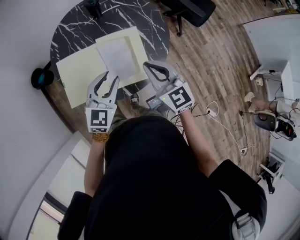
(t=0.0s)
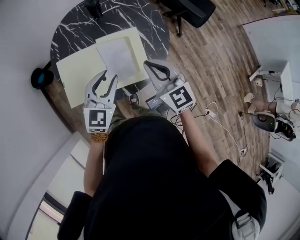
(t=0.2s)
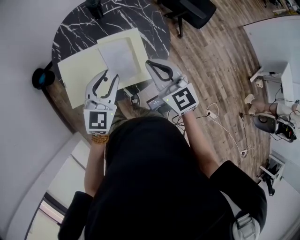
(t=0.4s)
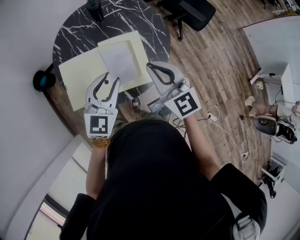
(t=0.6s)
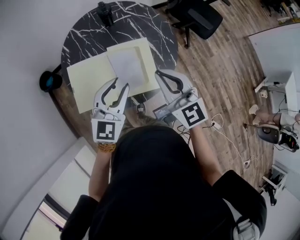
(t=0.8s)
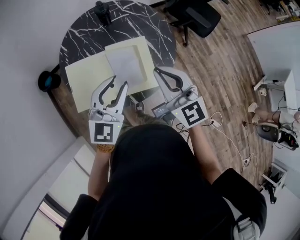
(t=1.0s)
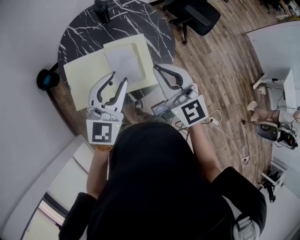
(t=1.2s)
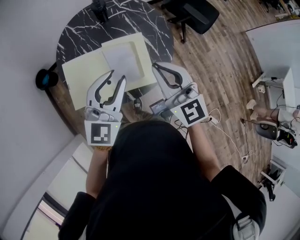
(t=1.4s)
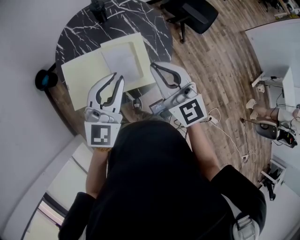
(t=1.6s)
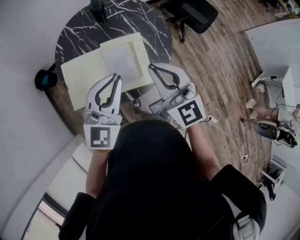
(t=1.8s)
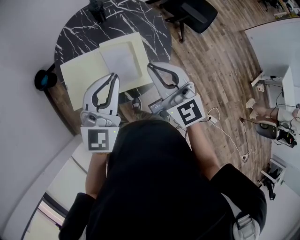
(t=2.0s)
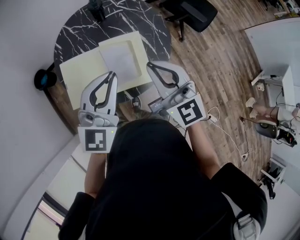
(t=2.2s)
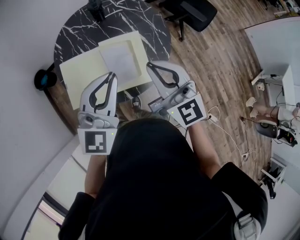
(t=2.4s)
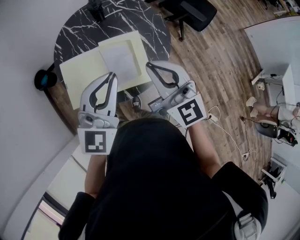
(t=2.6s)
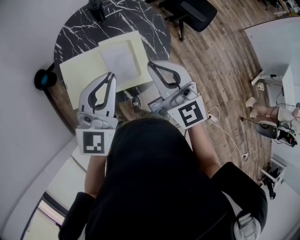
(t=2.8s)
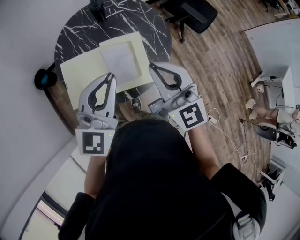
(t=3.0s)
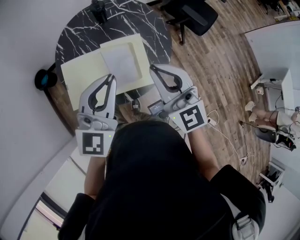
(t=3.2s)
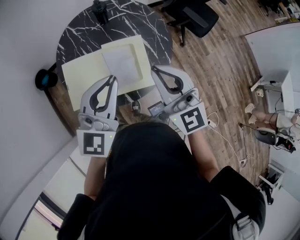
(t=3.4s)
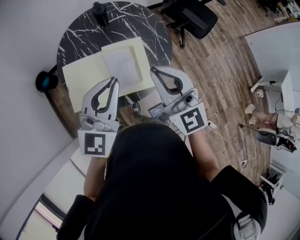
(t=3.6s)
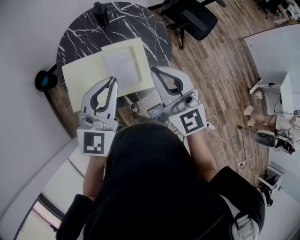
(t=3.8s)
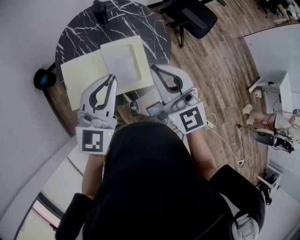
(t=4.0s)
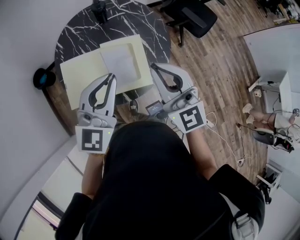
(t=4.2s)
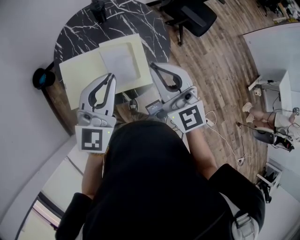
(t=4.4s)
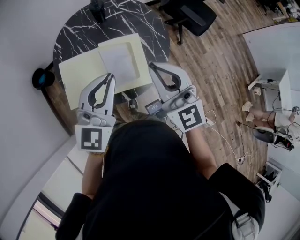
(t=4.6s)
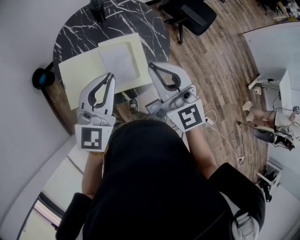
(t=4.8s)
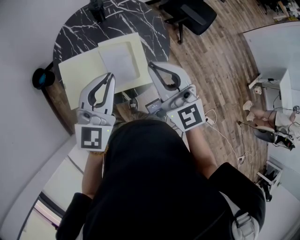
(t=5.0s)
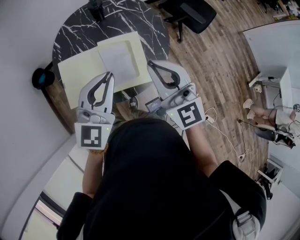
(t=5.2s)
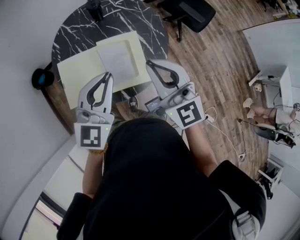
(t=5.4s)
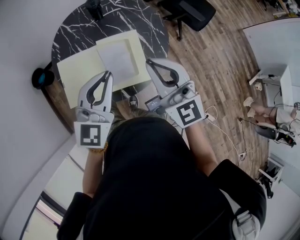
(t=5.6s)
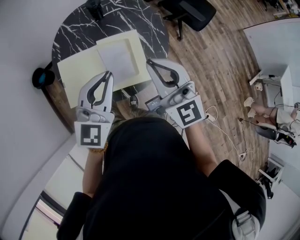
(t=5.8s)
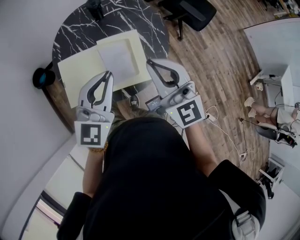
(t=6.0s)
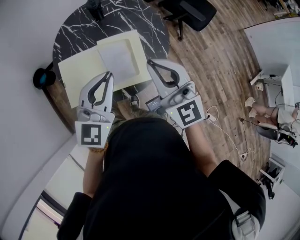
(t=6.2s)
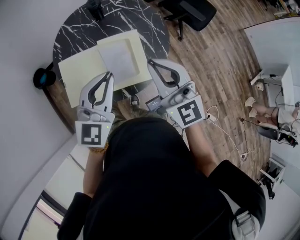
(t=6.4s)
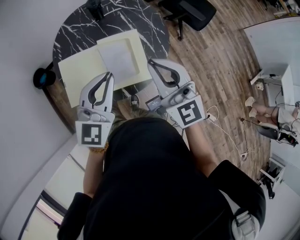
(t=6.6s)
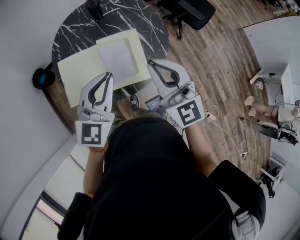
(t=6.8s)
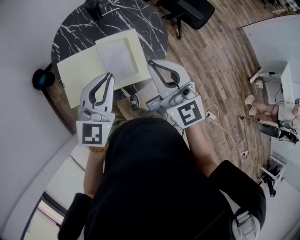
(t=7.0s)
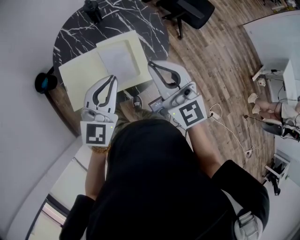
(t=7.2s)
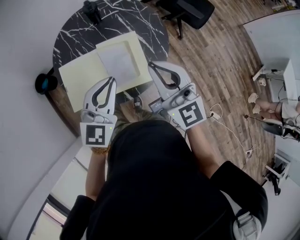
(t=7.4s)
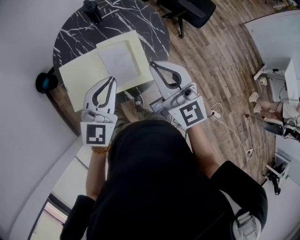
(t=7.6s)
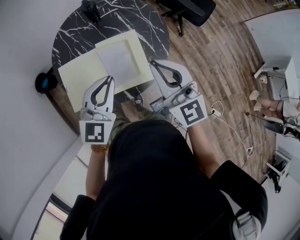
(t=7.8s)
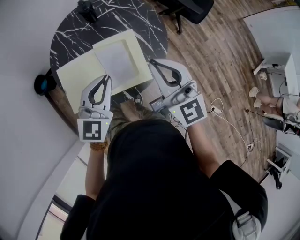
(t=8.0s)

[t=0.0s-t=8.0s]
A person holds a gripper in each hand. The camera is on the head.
t=0.0s to t=1.6s: The grippers both shift upward by roughly 10 cm.
t=1.6s to t=3.2s: The left gripper travels upward by roughly 5 cm.
t=3.2s to t=6.4s: The grippers make only small movements.
t=6.4s to t=8.0s: The left gripper is displaced downward by about 5 cm.

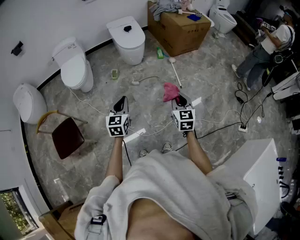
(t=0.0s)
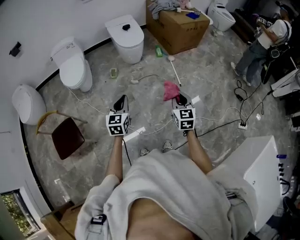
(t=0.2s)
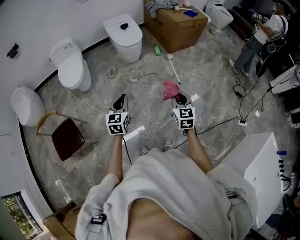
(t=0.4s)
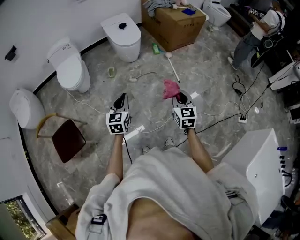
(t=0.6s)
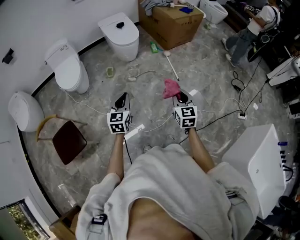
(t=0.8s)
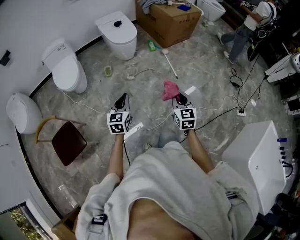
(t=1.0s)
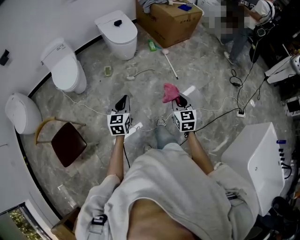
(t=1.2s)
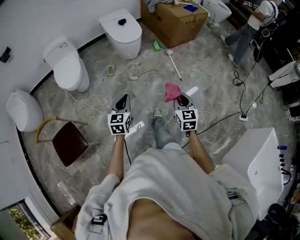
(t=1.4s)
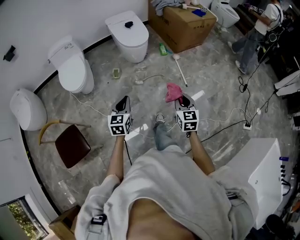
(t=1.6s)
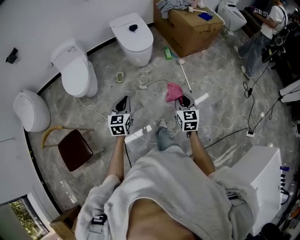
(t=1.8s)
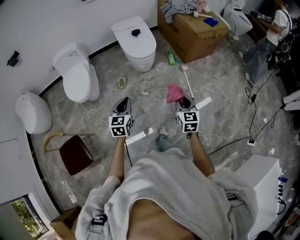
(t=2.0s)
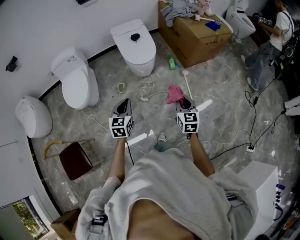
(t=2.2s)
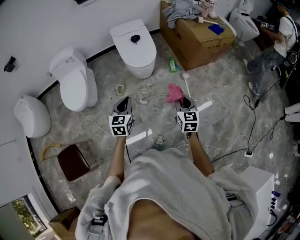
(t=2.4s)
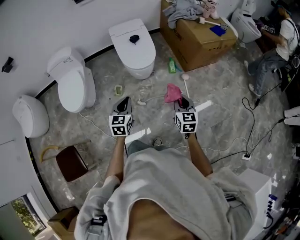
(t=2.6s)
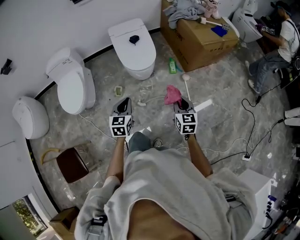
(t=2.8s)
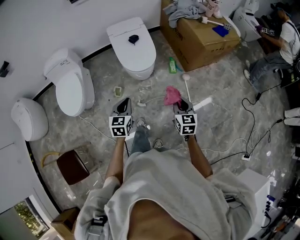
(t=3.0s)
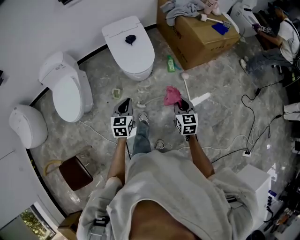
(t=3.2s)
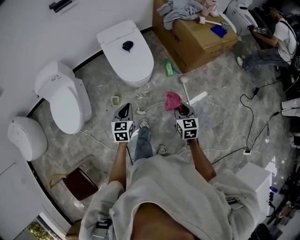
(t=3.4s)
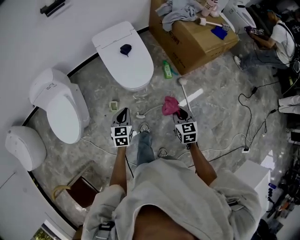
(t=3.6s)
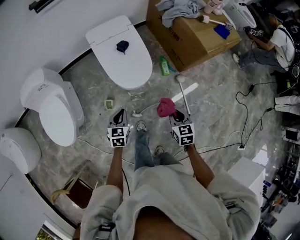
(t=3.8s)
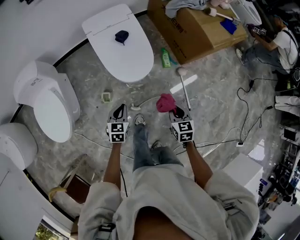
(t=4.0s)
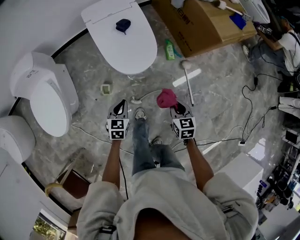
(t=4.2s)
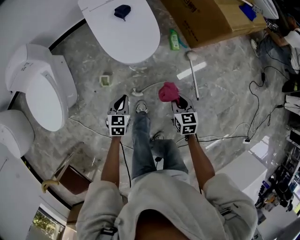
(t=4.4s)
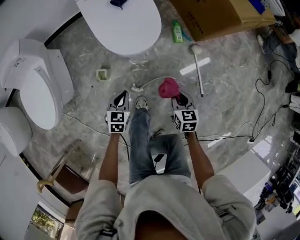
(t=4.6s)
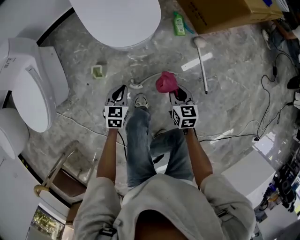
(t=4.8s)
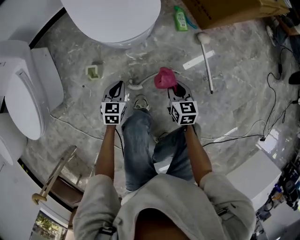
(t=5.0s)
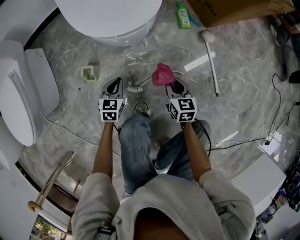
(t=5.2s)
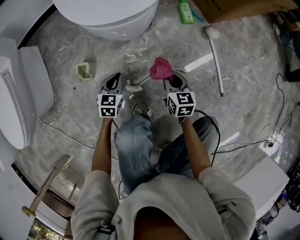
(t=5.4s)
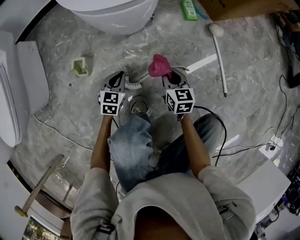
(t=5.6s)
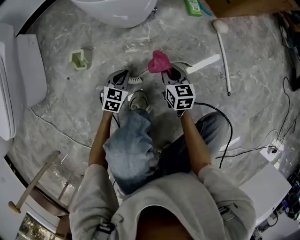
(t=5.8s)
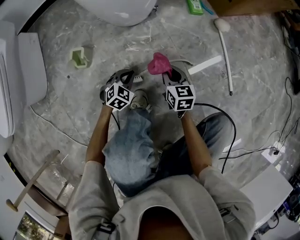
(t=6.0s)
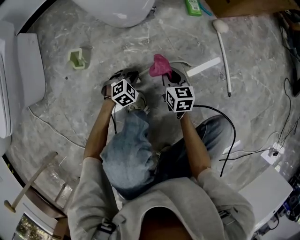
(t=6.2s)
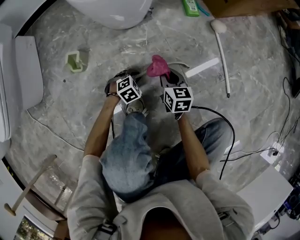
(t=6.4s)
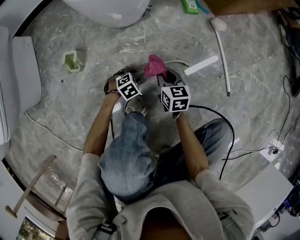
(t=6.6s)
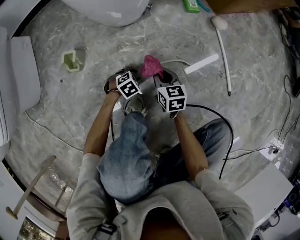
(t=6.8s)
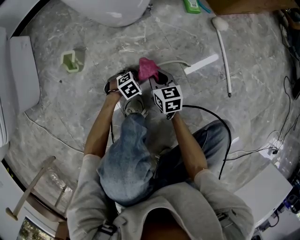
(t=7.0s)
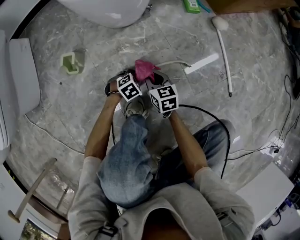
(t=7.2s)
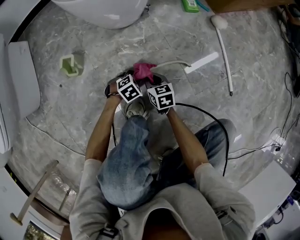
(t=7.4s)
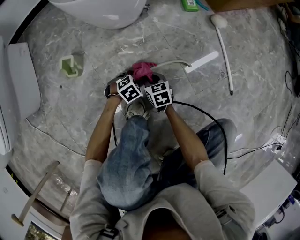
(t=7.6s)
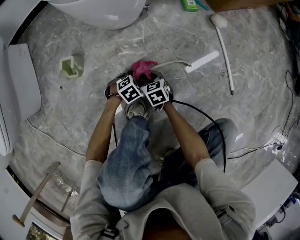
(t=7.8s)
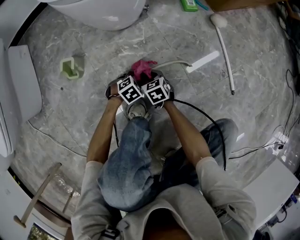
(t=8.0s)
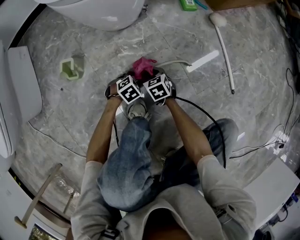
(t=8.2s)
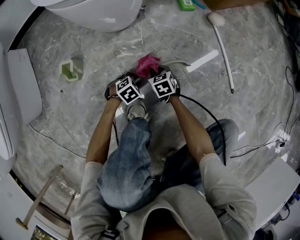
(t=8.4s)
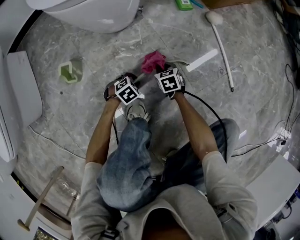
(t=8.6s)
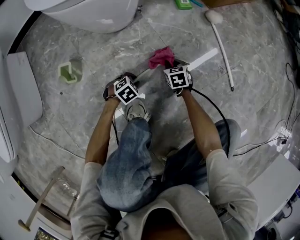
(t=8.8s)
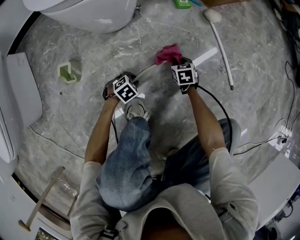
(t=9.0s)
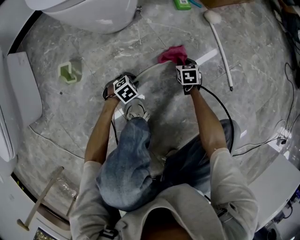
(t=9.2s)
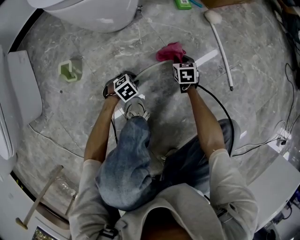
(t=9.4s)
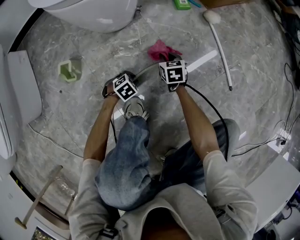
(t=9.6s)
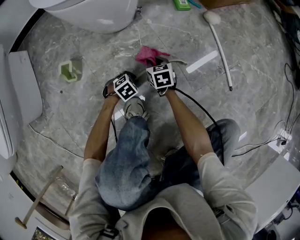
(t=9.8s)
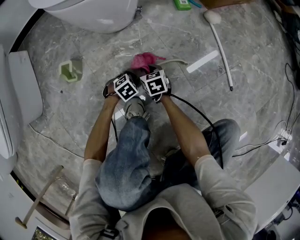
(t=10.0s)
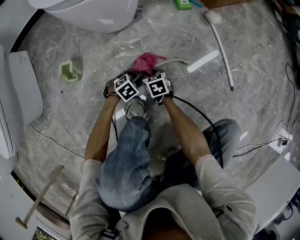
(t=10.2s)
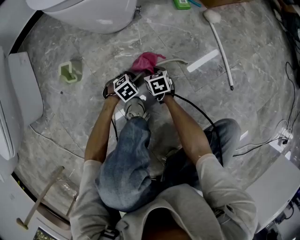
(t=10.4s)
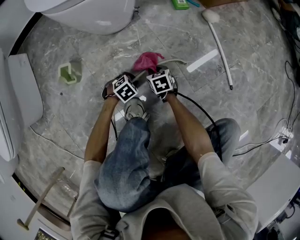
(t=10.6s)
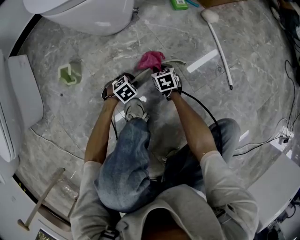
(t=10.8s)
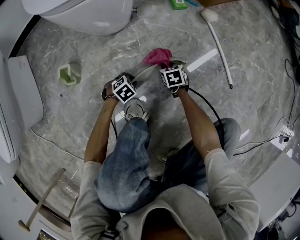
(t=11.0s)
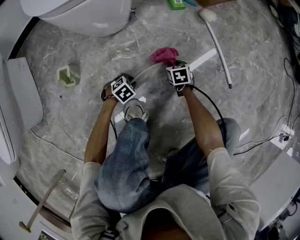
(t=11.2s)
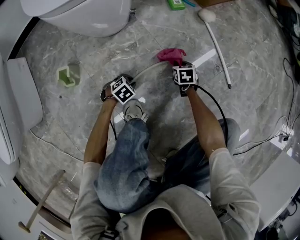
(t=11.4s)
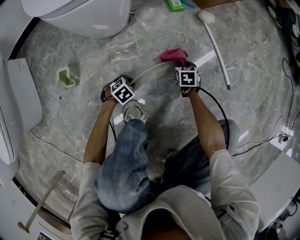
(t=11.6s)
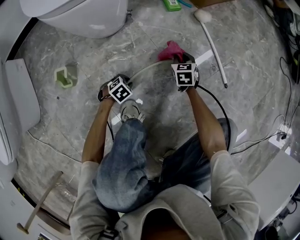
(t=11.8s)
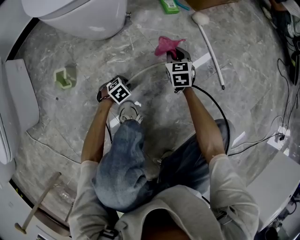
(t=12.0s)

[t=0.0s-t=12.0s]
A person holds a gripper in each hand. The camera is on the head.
t=0.0s to t=1.6s: Both grippers travel together forward and to the left, approximately 10 cm.
t=1.6s to t=3.0s: The two grippers go roughly 35 cm forward.
t=3.0s to t=4.4s: Both grippers move downward and forward, roughly 30 cm.
t=4.4s to t=6.0s: The two grippers go some 40 cm downward. The left gripper rotates some 40 degrees.
t=6.0s to t=7.6s: The left gripper travels downward and to the right by roughly 10 cm, turns by approximately 30 degrees, and opens and closes again. Meanwhile the right gripper goes about 15 cm downward and to the left.
t=7.6s to t=9.0s: The right gripper moves to the right and forward, some 20 cm.
t=9.0s to t=10.4s: The right gripper shifts about 15 cm to the left and backward.
t=10.4s to t=12.0s: The right gripper goes roughly 20 cm forward, upward and to the right, and swivels roughly 30 degrees.

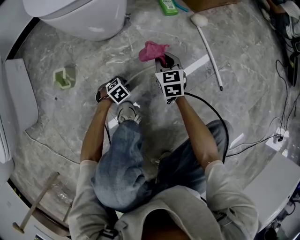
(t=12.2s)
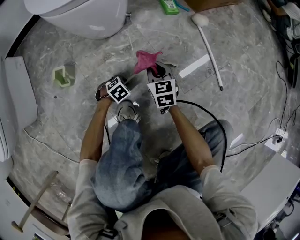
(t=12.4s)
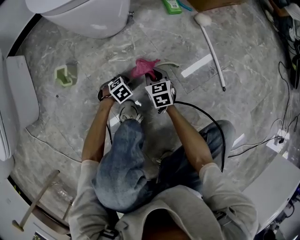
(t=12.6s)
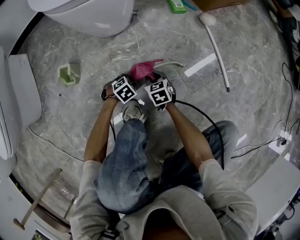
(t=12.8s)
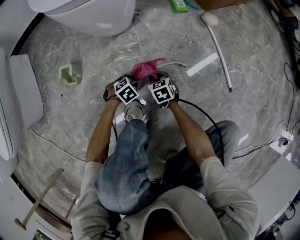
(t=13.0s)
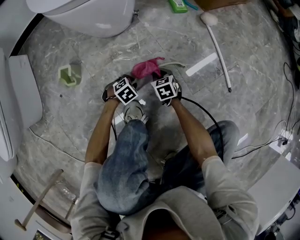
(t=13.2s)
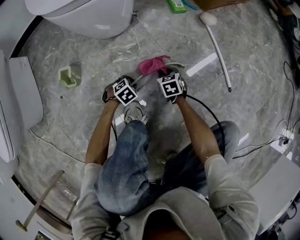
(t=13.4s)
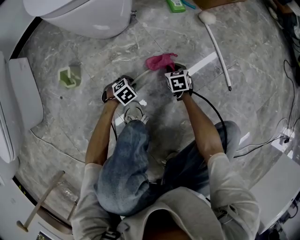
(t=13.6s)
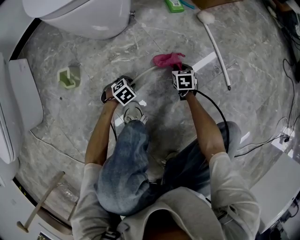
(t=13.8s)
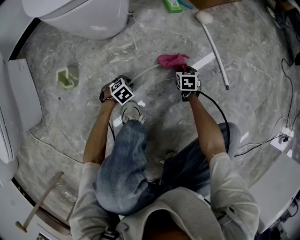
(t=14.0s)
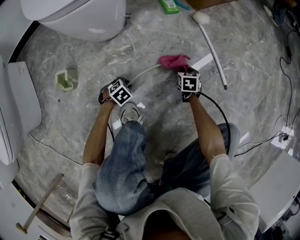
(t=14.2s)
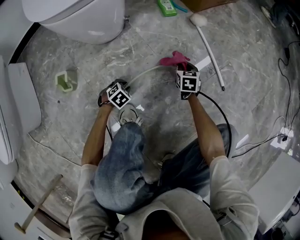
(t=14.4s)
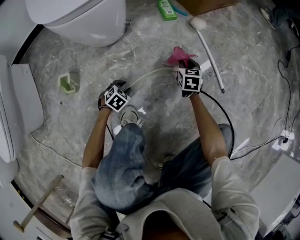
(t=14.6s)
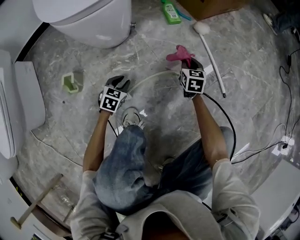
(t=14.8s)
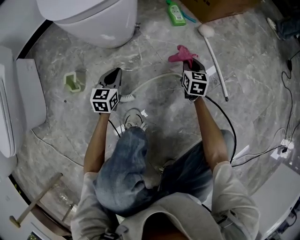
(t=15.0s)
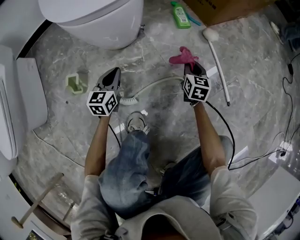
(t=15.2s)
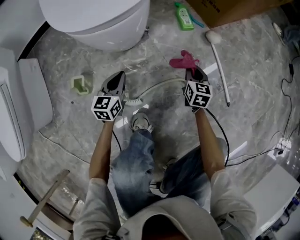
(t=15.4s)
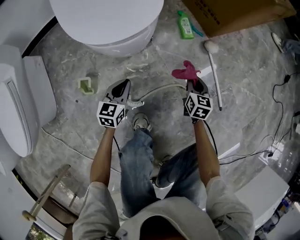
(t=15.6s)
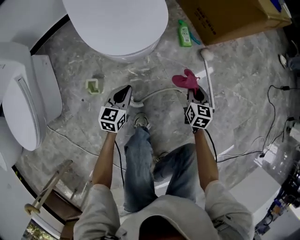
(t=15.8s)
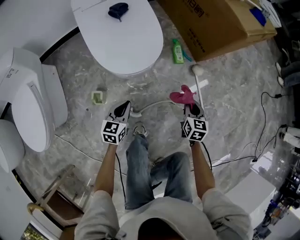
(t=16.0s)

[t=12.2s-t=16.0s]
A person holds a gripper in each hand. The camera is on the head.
t=12.2s to t=13.4s: The right gripper heads downward, covering roughly 15 cm, and changes its angle by about 20 degrees.
t=13.4s to t=14.8s: The left gripper travels upward by some 10 cm, and swivels some 30 degrees. Meanwhile the right gripper moves forward, upward and to the right, approximately 20 cm, and swivels some 30 degrees.
t=14.8s to t=16.0s: Both grippers travel together upward, some 30 cm. The left gripper changes its angle by approximately 30 degrees, and closes.
